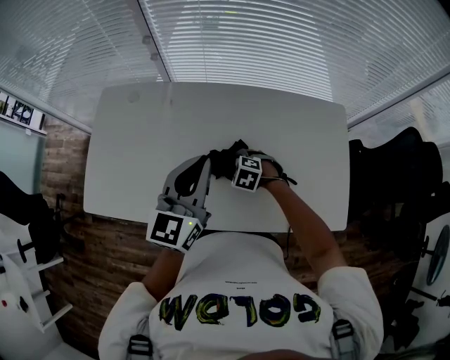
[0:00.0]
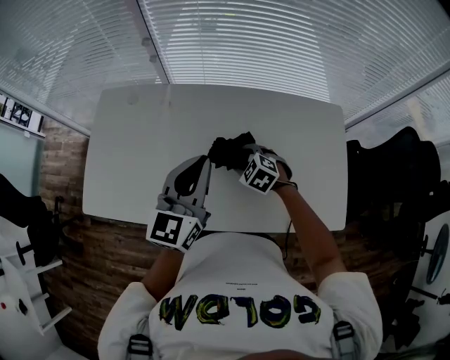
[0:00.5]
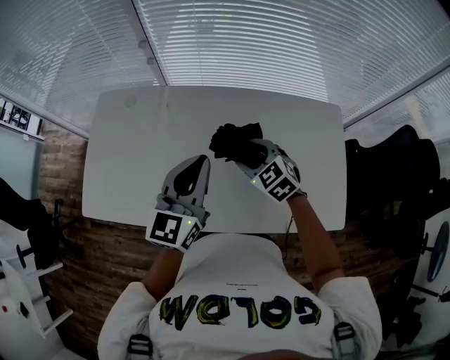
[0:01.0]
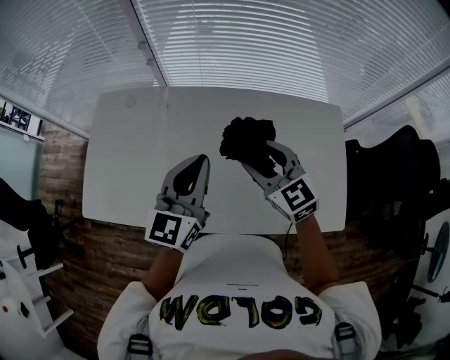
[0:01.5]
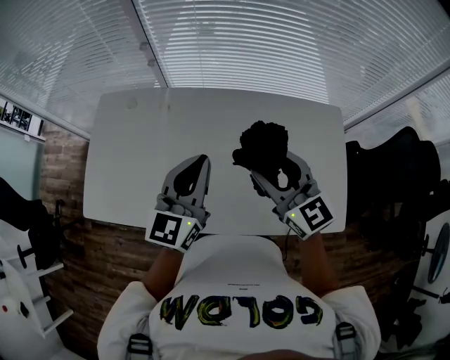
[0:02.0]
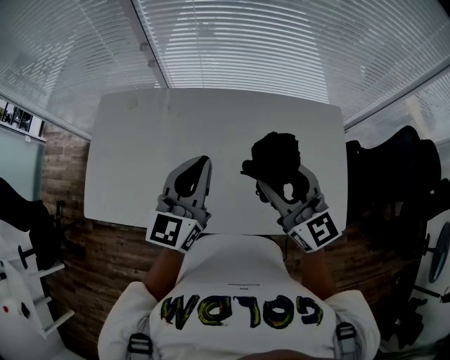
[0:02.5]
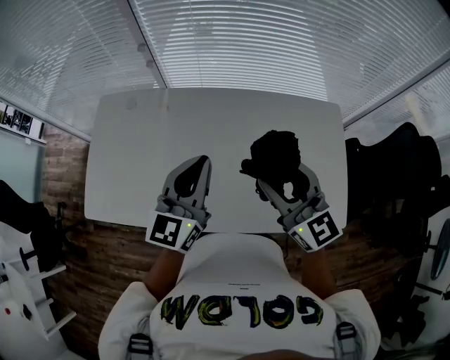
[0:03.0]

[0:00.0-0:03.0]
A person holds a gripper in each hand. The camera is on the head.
0:00.0 to 0:01.5: The right gripper is displaced upward by some 25 cm, and tilts its fingers some 50 degrees upward.
0:01.5 to 0:03.0: The right gripper goes approximately 10 cm upward and backward.

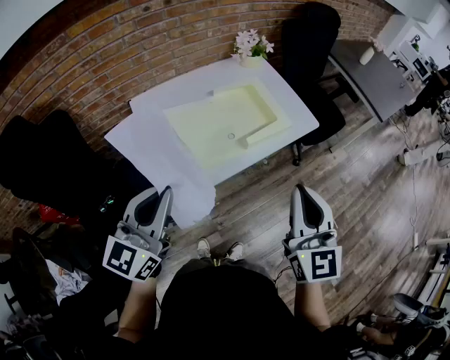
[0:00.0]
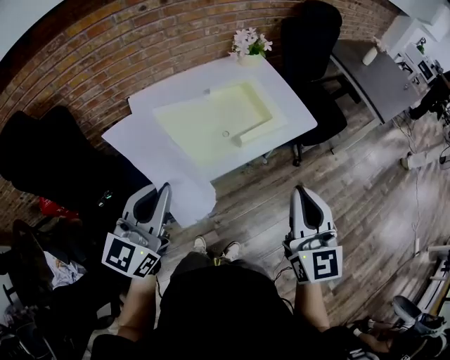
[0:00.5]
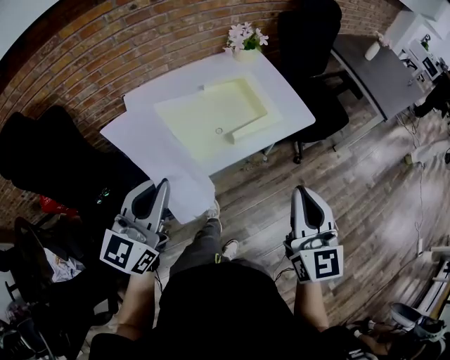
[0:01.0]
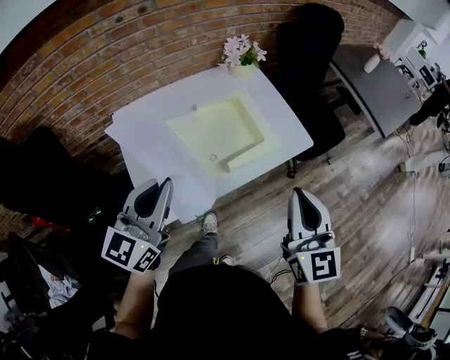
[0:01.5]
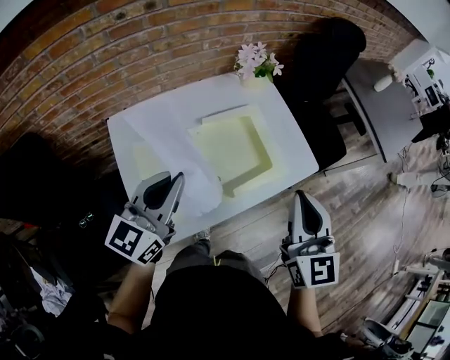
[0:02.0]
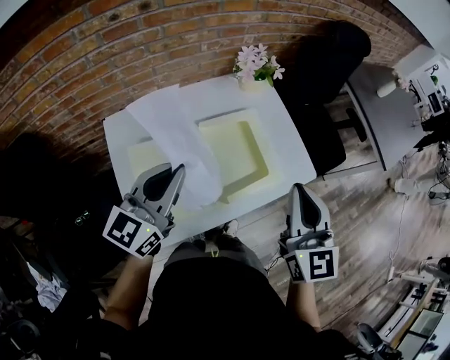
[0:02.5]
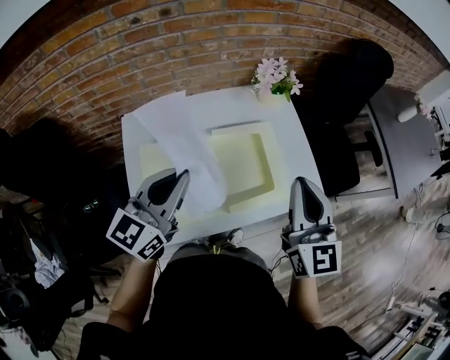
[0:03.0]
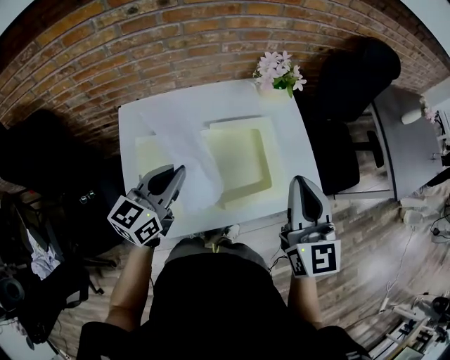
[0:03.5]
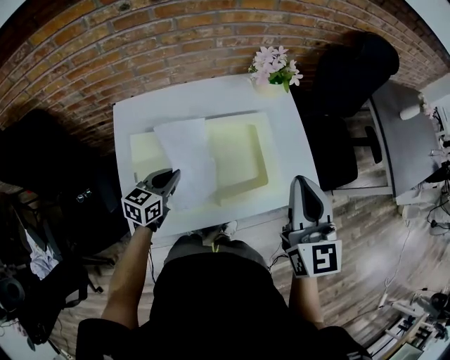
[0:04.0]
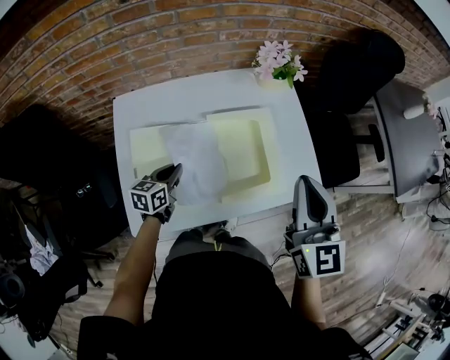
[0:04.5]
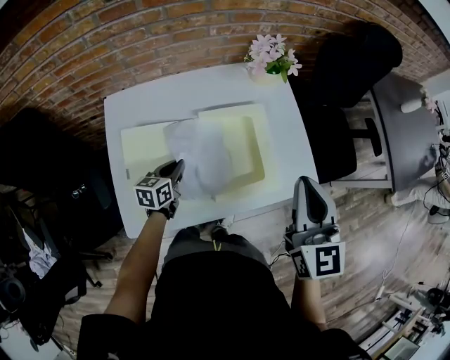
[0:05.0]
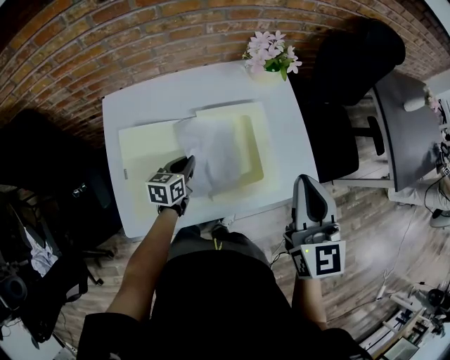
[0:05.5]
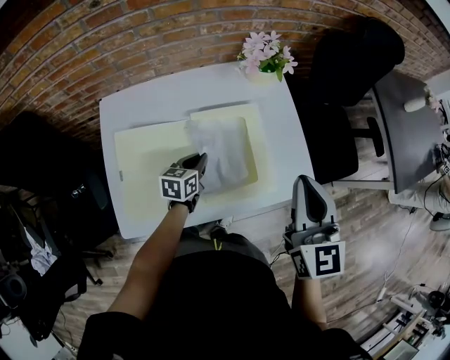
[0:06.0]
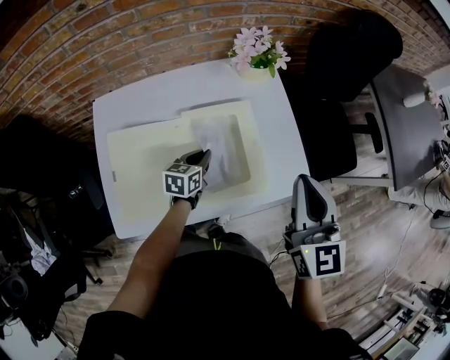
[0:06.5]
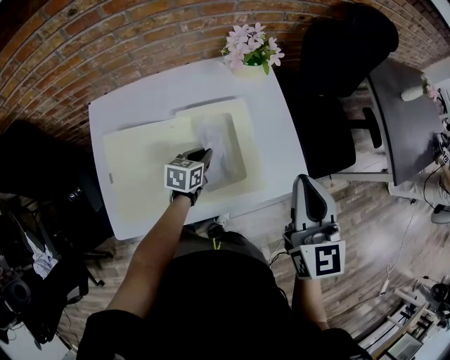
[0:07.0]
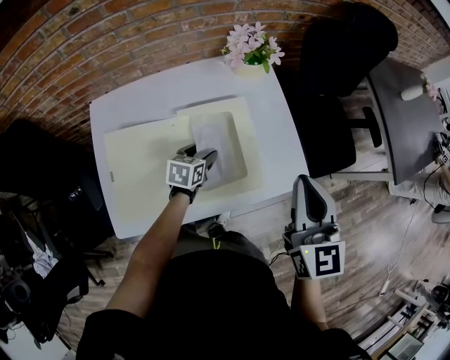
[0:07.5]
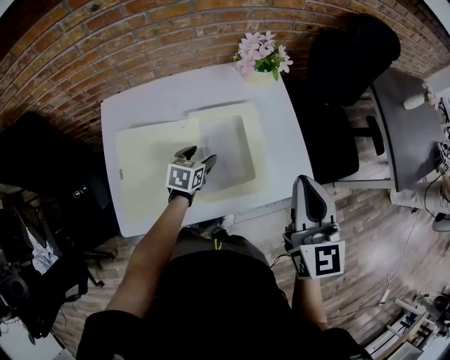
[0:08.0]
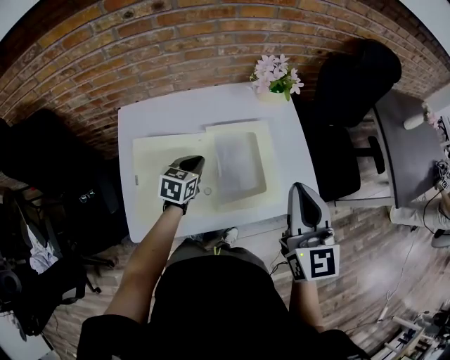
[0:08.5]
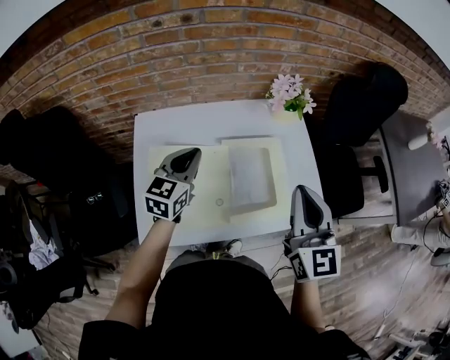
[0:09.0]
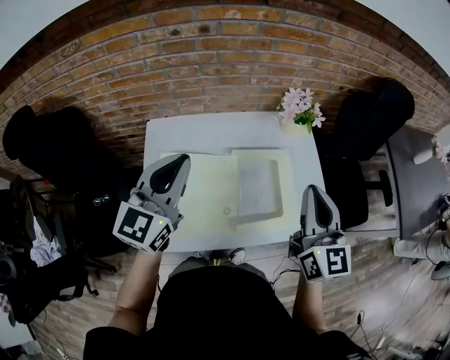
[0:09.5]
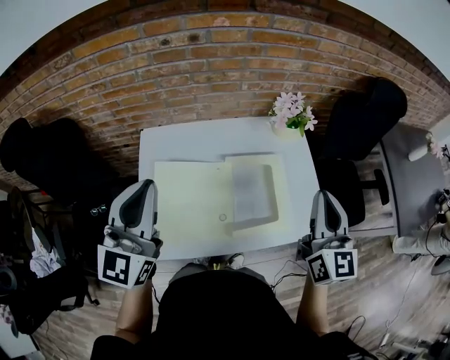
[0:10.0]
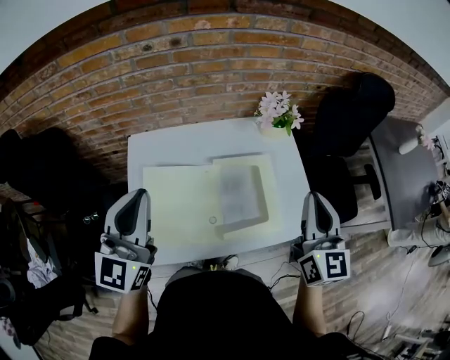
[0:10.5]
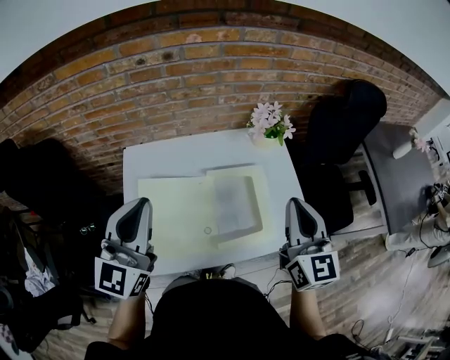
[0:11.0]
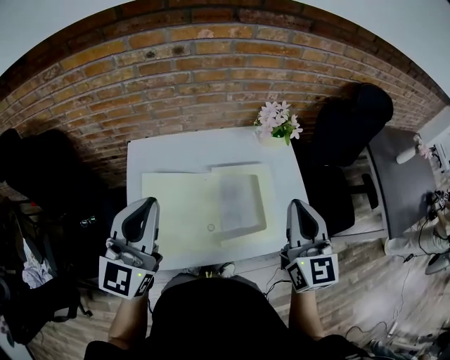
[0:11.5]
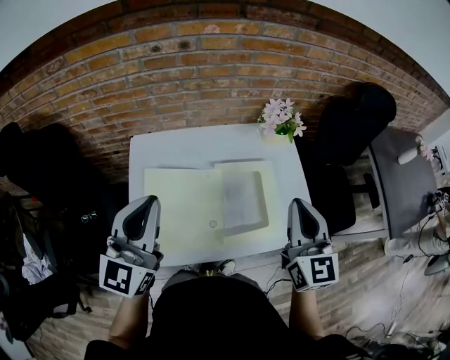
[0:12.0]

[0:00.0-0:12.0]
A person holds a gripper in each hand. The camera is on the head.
0:00.0 to 0:02.0: The grippers both shift forward by roughly 25 cm.
0:02.0 to 0:04.0: The left gripper goes some 20 cm downward, and turns by about 30 degrees, while the right gripper travels forward by roughly 10 cm.
0:04.0 to 0:06.0: The left gripper travels to the right, downward and forward by roughly 15 cm, while the right gripper ends up some 5 cm from where it was.
0:06.0 to 0:08.0: The left gripper opens up.
0:08.0 to 0:10.0: The right gripper goes about 5 cm upward. The left gripper is displaced upward and to the left by roughly 40 cm, tilts its fingers about 50 degrees upward, and closes its fingers.
0:10.0 to 0:12.0: The grippers make only small movements.

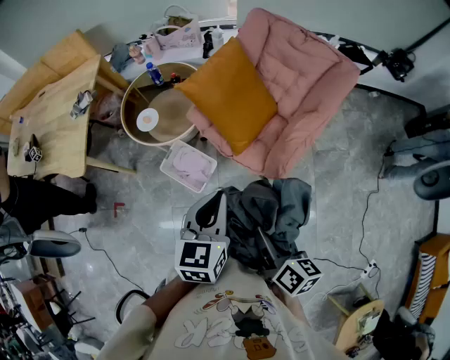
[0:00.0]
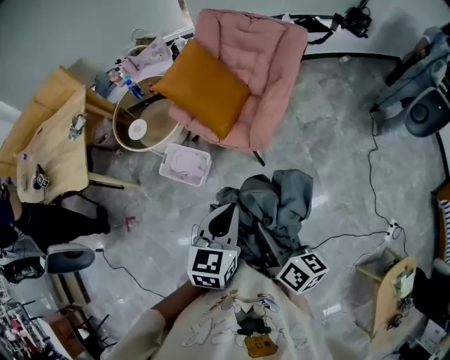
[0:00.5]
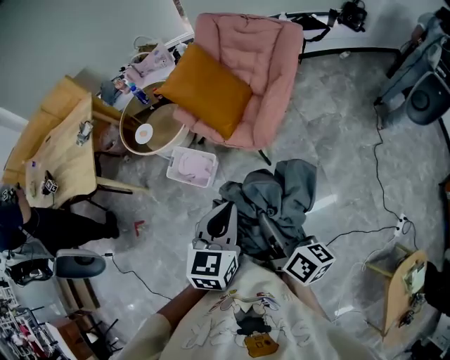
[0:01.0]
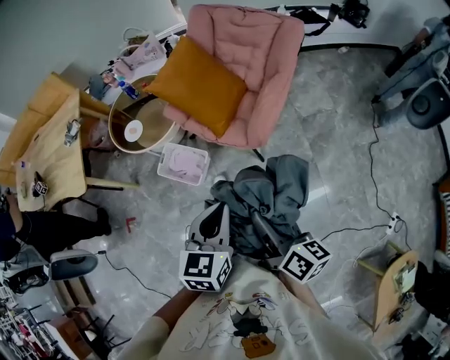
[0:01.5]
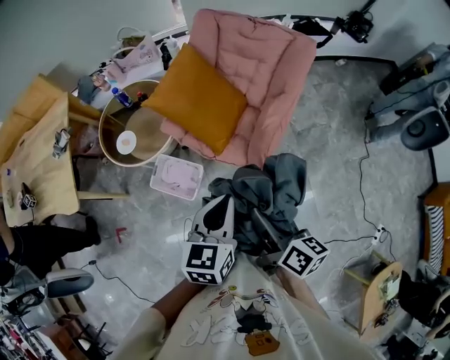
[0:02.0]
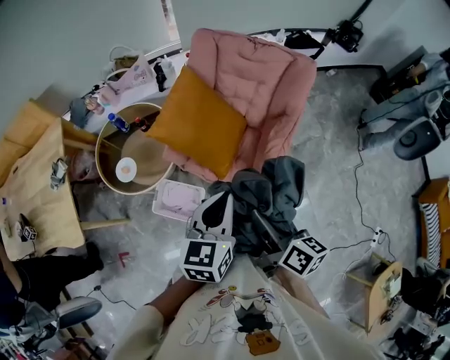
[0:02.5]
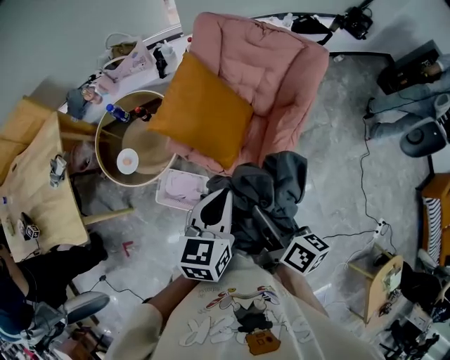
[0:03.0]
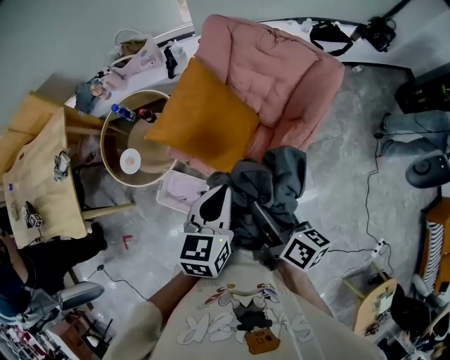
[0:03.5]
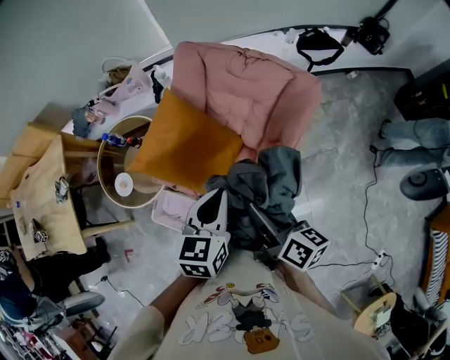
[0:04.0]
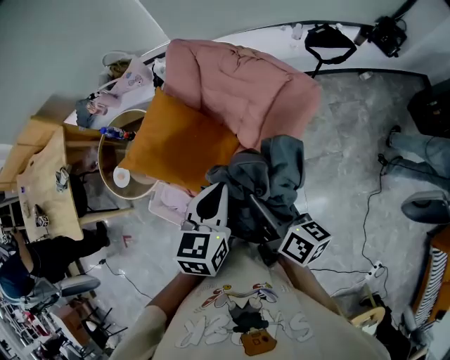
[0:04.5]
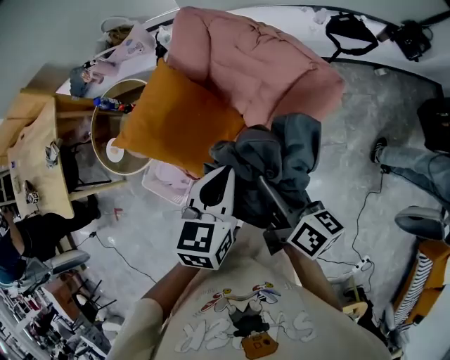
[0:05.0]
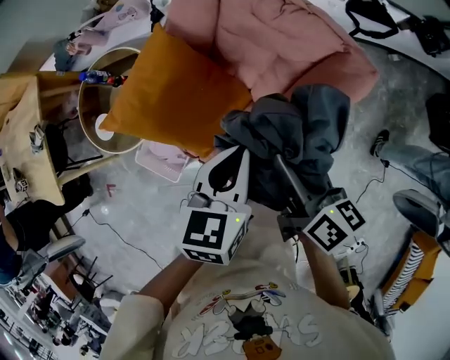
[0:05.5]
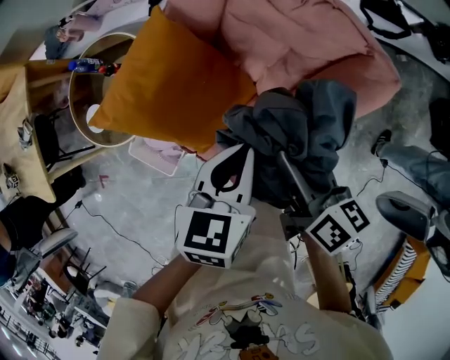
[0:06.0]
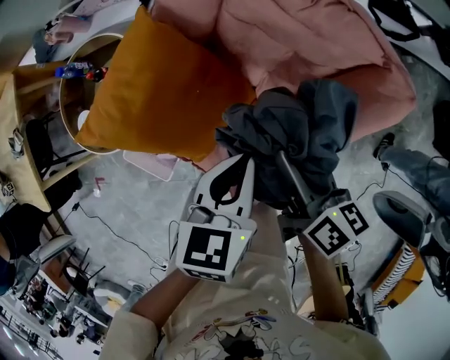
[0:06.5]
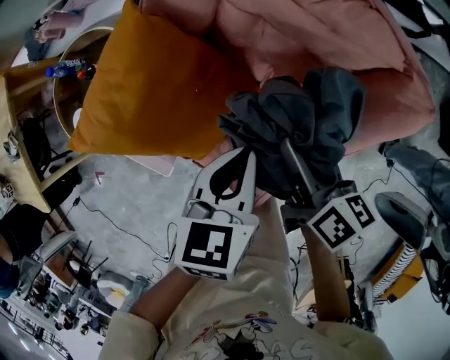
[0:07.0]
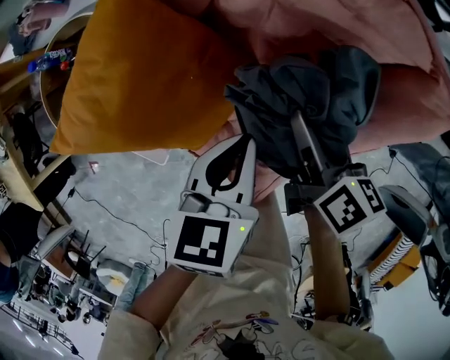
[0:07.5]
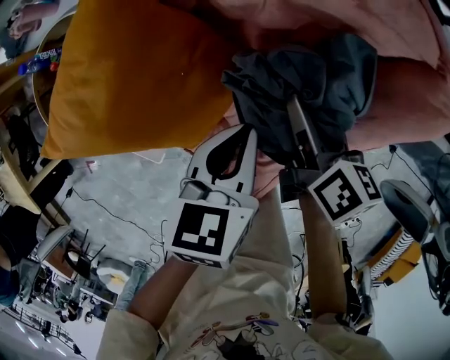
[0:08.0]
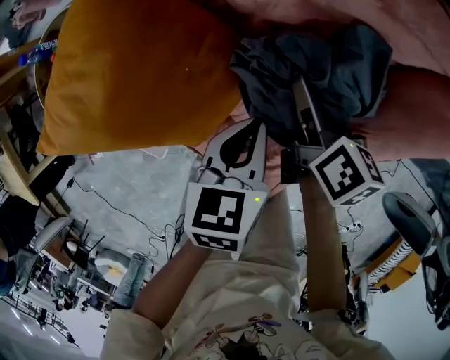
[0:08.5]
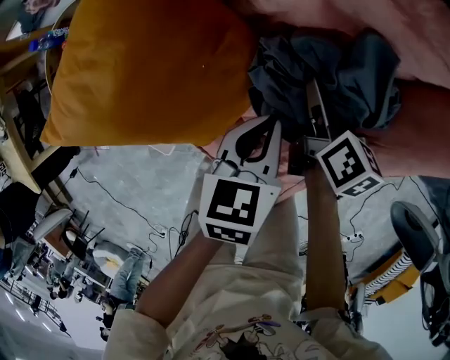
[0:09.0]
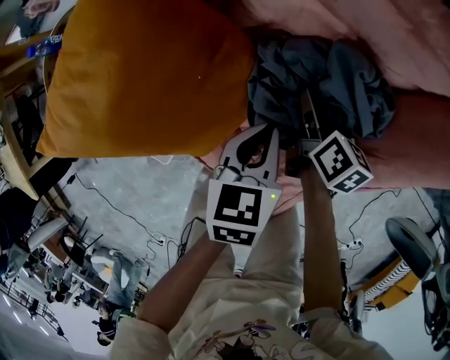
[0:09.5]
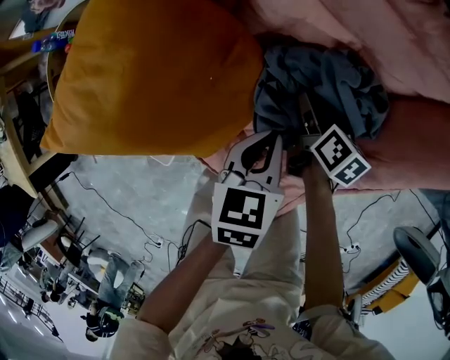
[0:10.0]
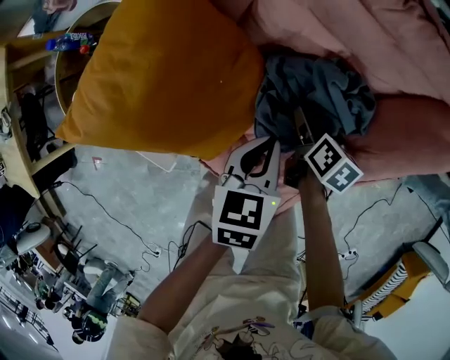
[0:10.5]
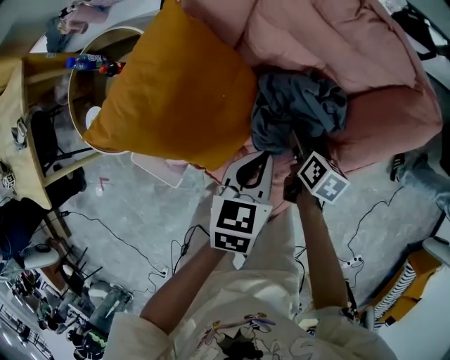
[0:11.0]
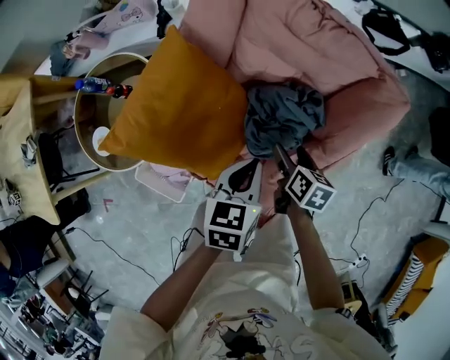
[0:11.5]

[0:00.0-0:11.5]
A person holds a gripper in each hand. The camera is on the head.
0:00.0 to 0:02.0: The right gripper travels backward and back again, some 20 cm each way. Meanwhile the left gripper shifts roughly 10 cm to the right, and moves roughly 25 cm backward and comes back.
0:02.0 to 0:04.0: The grippers both shift forward by about 30 cm.
0:04.0 to 0:06.0: The left gripper shifts some 20 cm downward, forward and to the right; the right gripper heads forward and downward, covering about 20 cm.
0:06.0 to 0:07.5: The grippers both shift downward and forward by some 15 cm.
0:07.5 to 0:09.5: The two grippers go some 15 cm downward.
0:09.5 to 0:11.5: The left gripper travels upward by roughly 15 cm; the right gripper heads upward and backward, covering roughly 15 cm.
